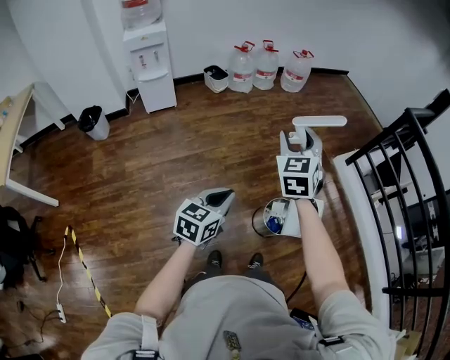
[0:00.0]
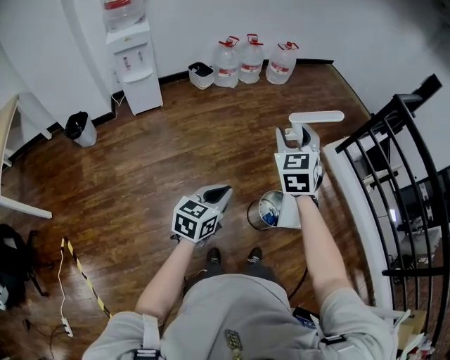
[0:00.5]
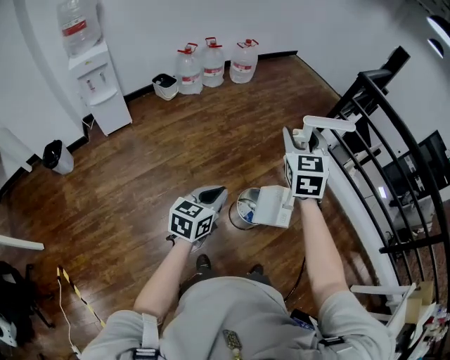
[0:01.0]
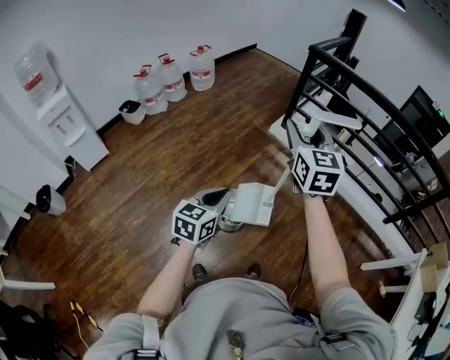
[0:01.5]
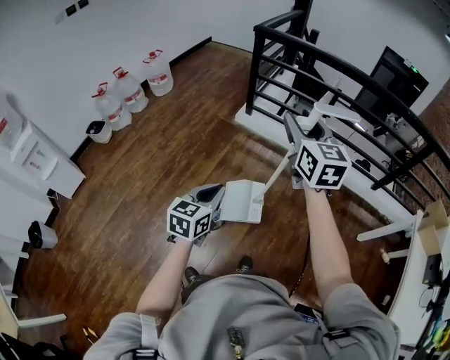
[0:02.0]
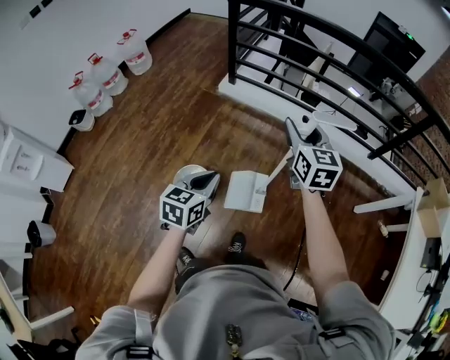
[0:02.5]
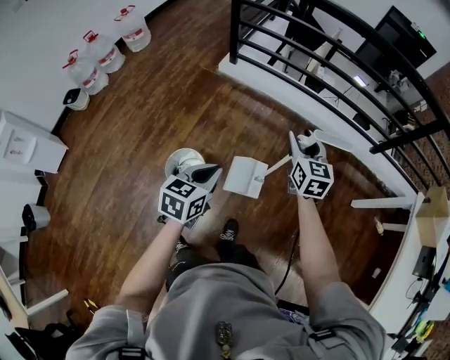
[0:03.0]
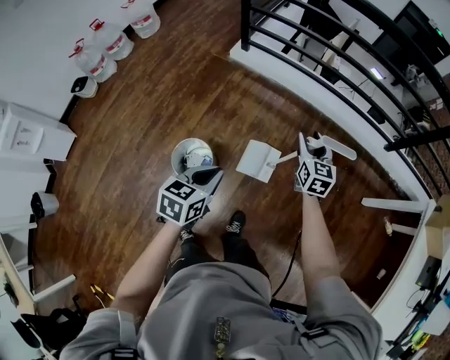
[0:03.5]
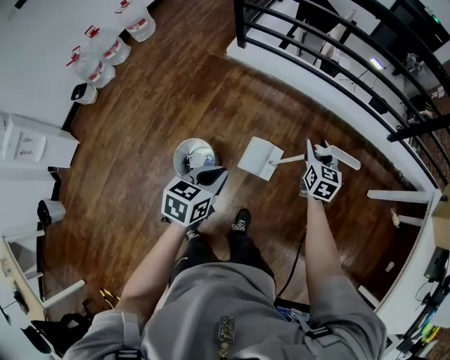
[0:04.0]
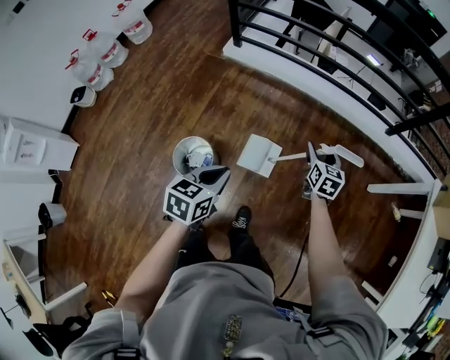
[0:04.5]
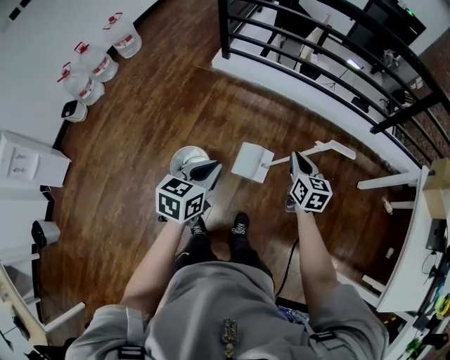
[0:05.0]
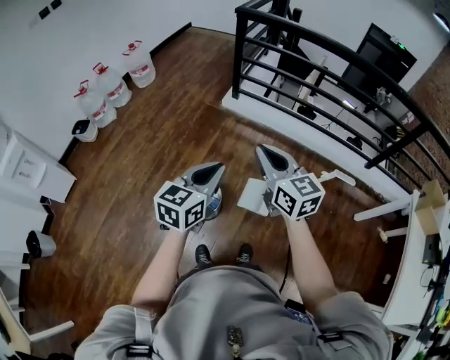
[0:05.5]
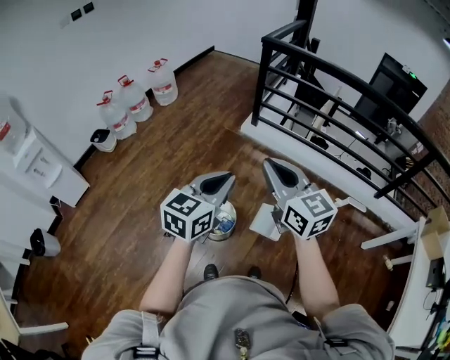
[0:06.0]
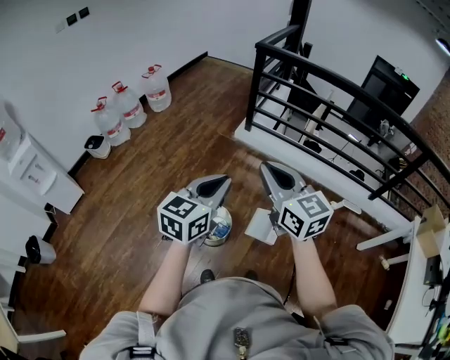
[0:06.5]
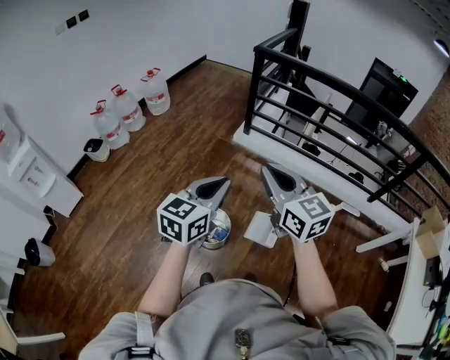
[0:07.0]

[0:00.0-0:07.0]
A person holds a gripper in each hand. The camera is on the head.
0:00.0 to 0:02.0: The two grippers travel together, approximately 50 cm. The left gripper rotates approximately 30 degrees, while the right gripper swivels some 40 degrees.
0:02.0 to 0:03.5: The left gripper heads downward, to the right and forward, covering about 15 cm; the right gripper goes about 40 cm downward and to the right, and changes its angle by some 20 degrees.
0:03.5 to 0:05.0: The left gripper shifts by approximately 5 cm, while the right gripper heads backward, covering about 15 cm, and closes.
0:05.0 to 0:07.0: The left gripper travels upward and to the left by some 25 cm, and turns by roughly 20 degrees. The right gripper shifts some 40 cm upward and to the left, and rotates about 40 degrees.

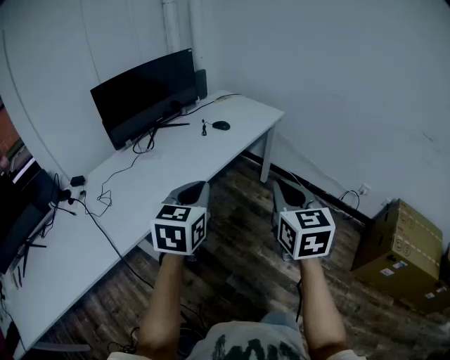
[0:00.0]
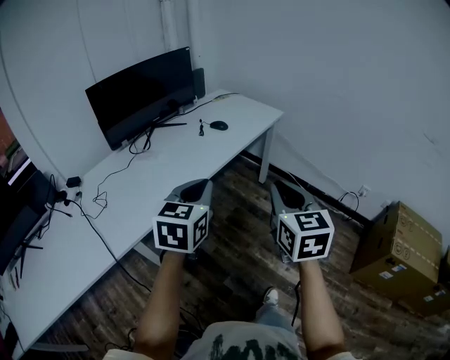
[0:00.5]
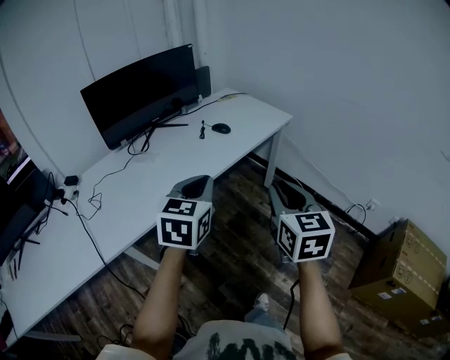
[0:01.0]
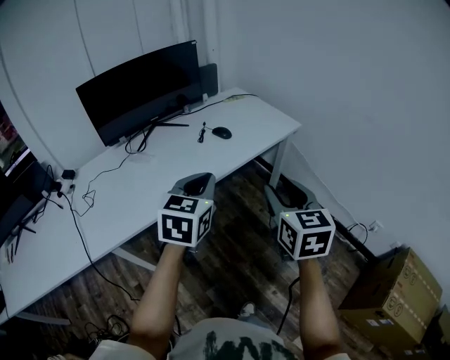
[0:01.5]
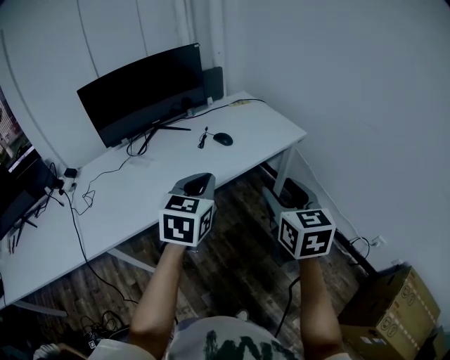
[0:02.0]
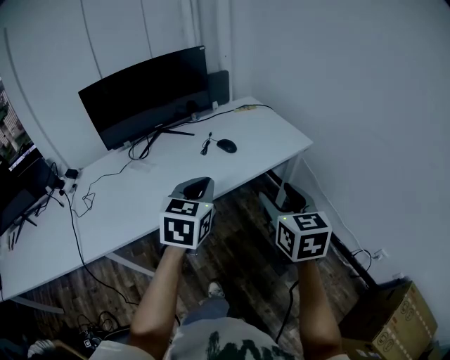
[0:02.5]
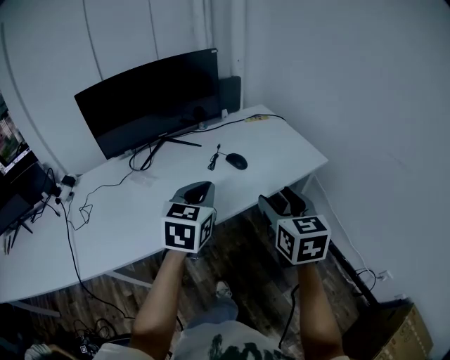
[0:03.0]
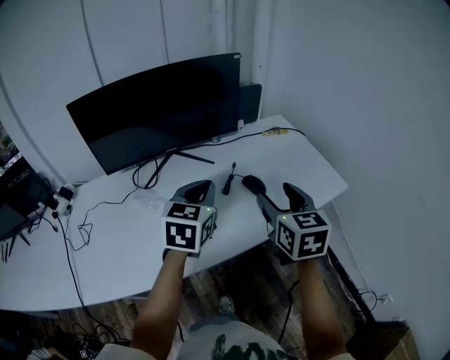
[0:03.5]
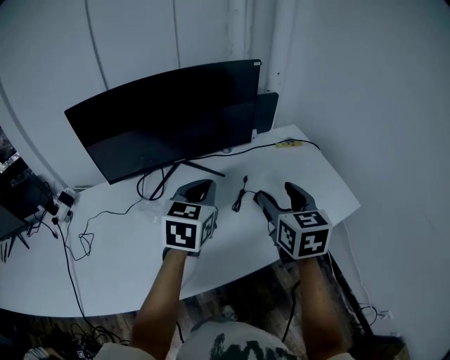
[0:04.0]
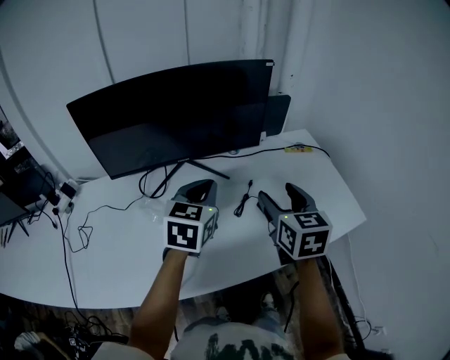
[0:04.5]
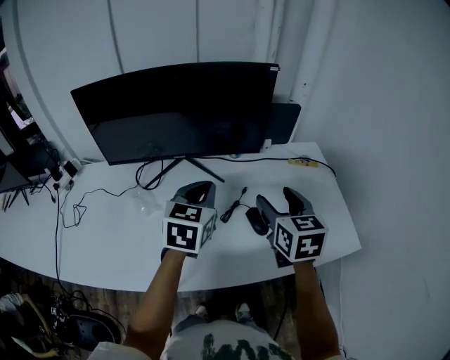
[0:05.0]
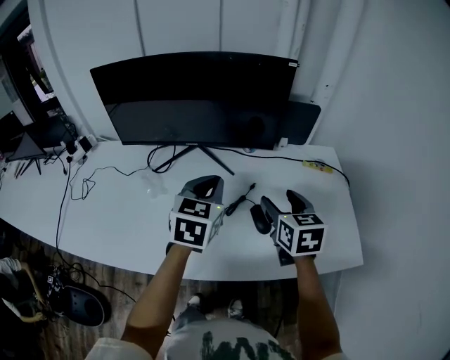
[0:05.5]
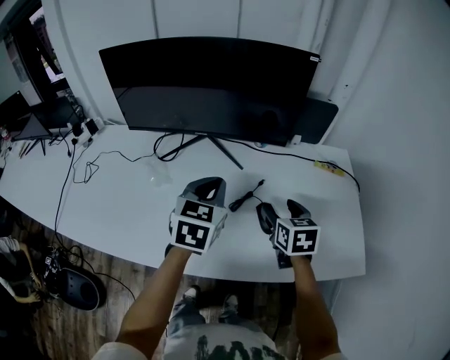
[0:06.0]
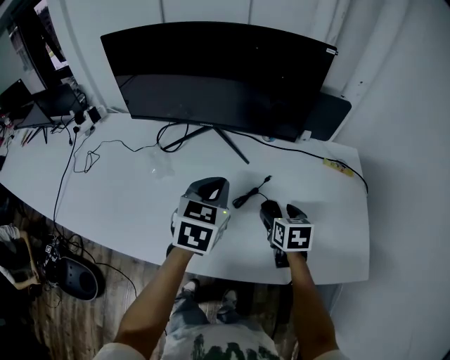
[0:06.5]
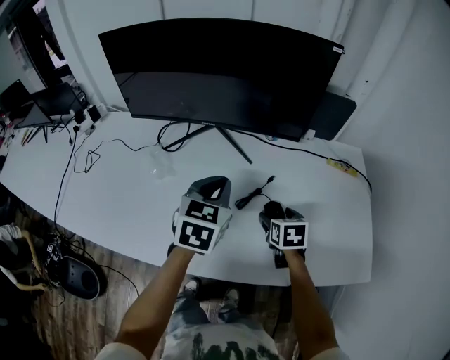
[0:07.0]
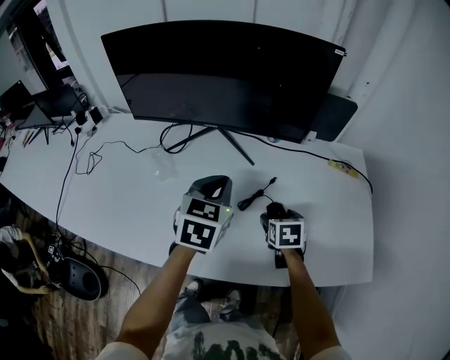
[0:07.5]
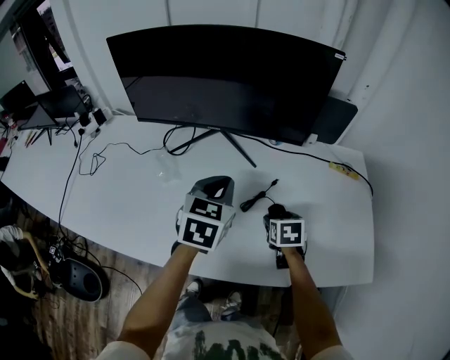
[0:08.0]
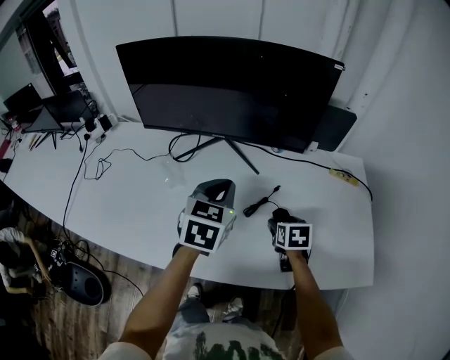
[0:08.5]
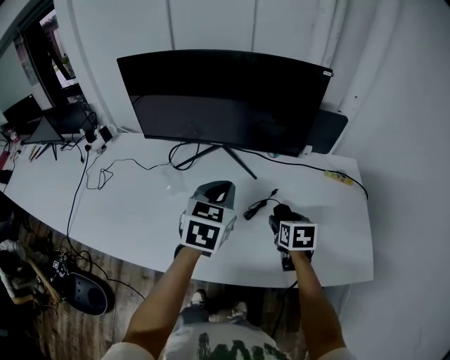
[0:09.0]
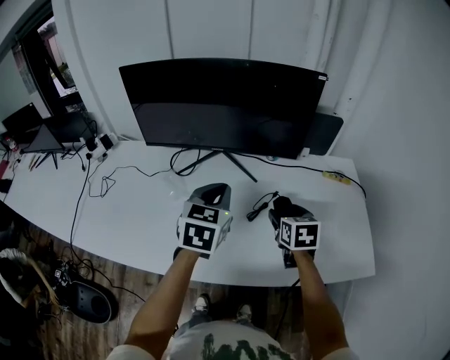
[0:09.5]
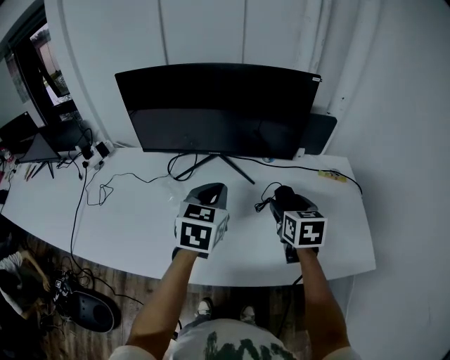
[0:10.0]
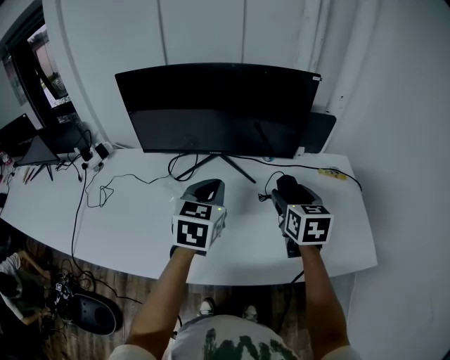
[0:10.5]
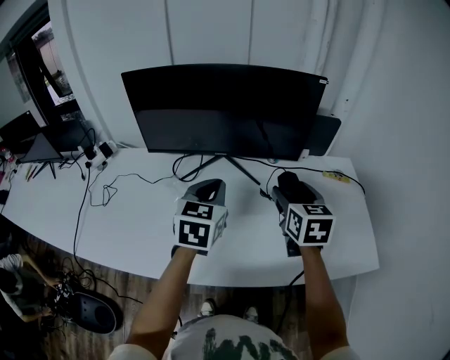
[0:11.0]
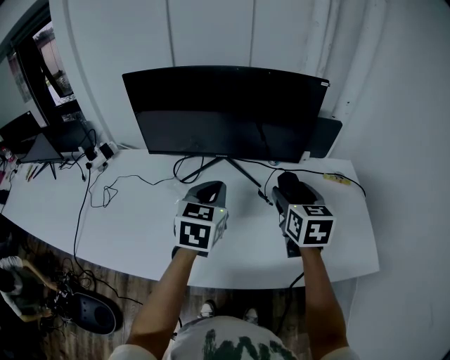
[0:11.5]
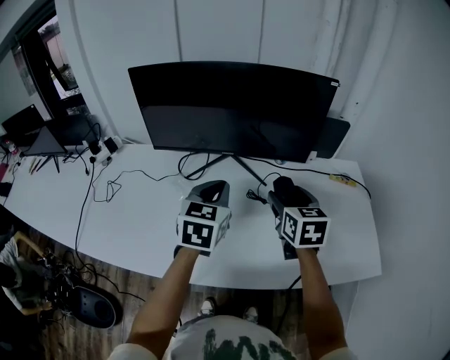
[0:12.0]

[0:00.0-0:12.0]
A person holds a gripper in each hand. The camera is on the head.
0:00.0 to 0:02.0: The grippers both shift forward and to the right by approximately 30 cm. The right gripper opens.
0:02.0 to 0:04.0: The left gripper goes some 40 cm forward and to the left, while the right gripper shifts roughly 40 cm forward.
0:04.0 to 0:06.0: The right gripper is displaced downward and forward by approximately 20 cm, and rotates some 30 degrees. Meanwhile the left gripper travels downward by approximately 5 cm, and changes its angle by about 20 degrees.
0:06.0 to 0:08.0: The right gripper travels downward by some 15 cm.
0:08.0 to 0:10.0: The left gripper moves upward, about 5 cm. The right gripper moves upward, some 20 cm, and swivels some 20 degrees.
0:10.0 to 0:12.0: The right gripper shifts approximately 5 cm to the left.

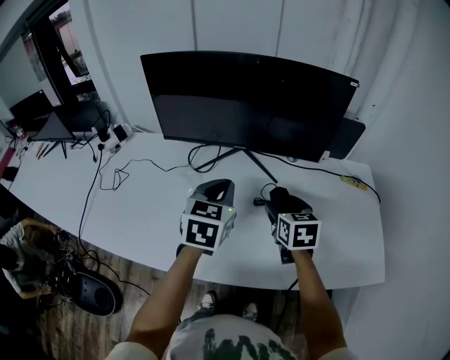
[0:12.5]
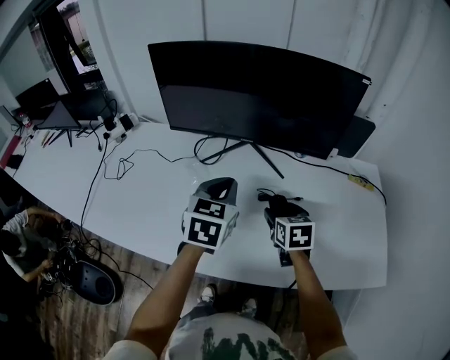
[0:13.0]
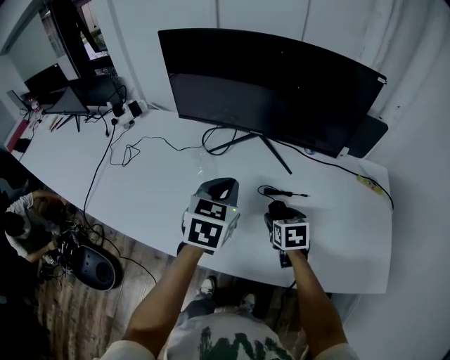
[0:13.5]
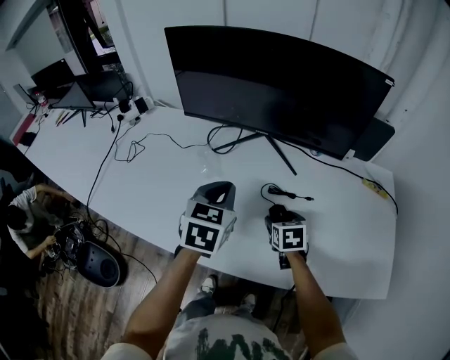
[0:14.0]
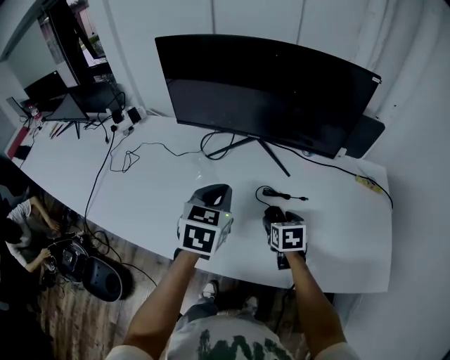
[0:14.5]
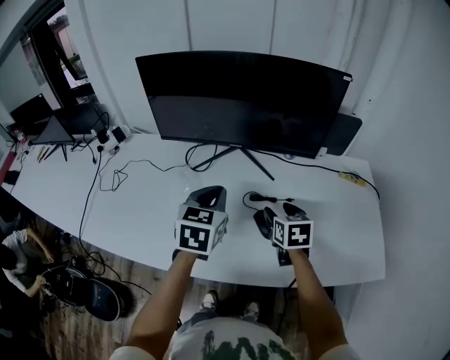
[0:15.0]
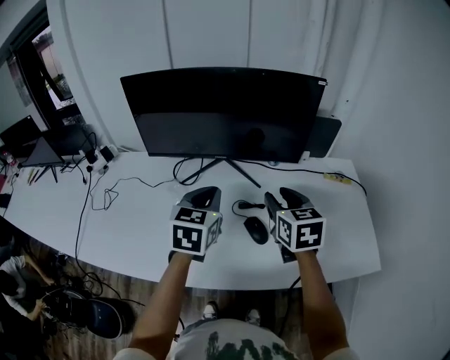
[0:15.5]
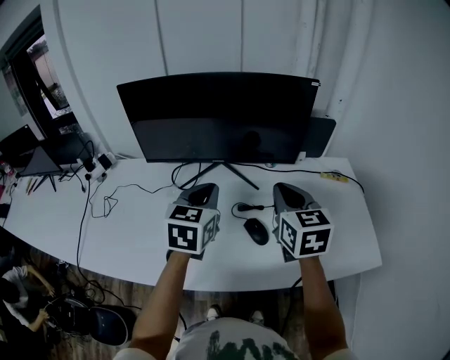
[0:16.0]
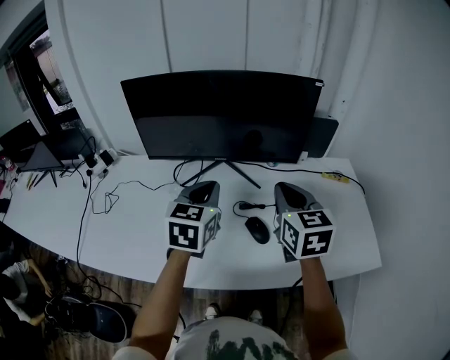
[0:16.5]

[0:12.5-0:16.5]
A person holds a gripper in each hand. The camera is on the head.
0:12.5 to 0:14.5: The right gripper goes approximately 15 cm downward, while the left gripper moves roughly 5 cm.
0:14.5 to 0:16.5: The left gripper heads upward, covering some 10 cm, while the right gripper travels upward by about 30 cm, tips its fingers upward by about 30 degrees, and closes its fingers.

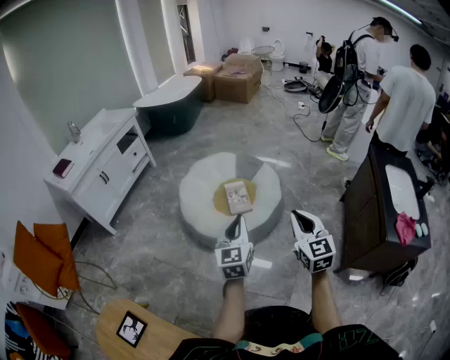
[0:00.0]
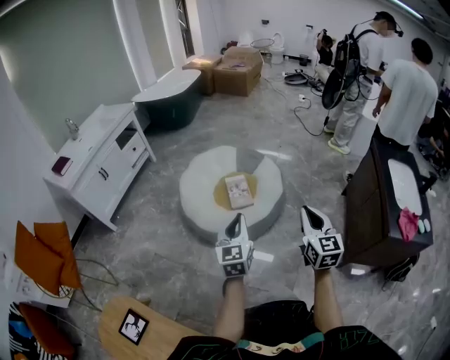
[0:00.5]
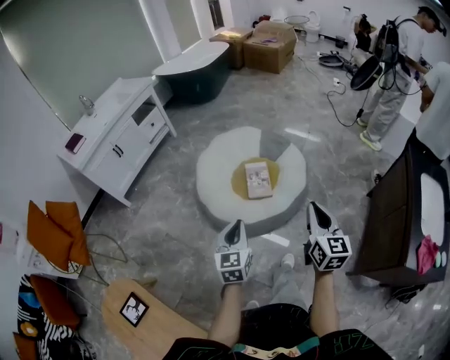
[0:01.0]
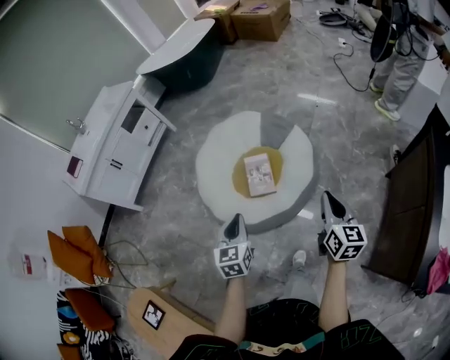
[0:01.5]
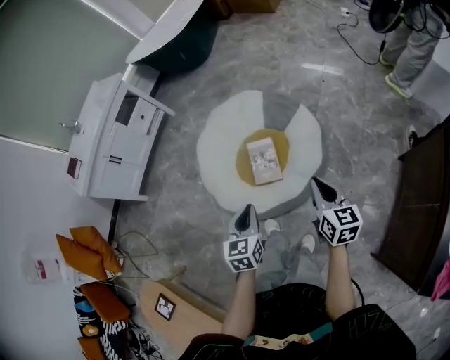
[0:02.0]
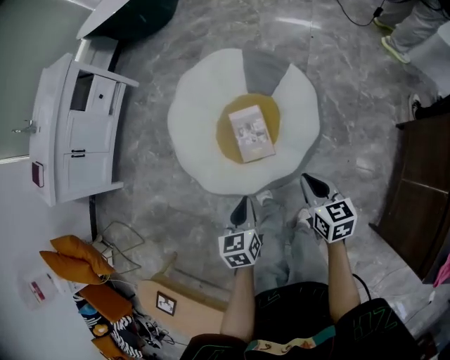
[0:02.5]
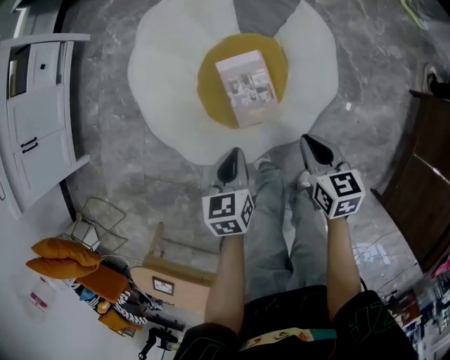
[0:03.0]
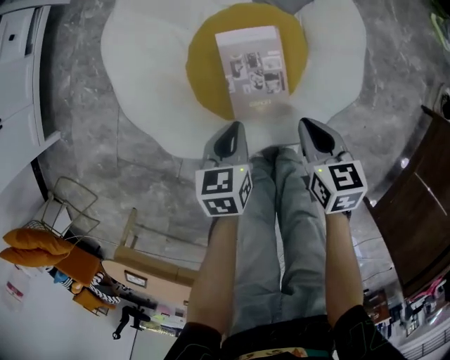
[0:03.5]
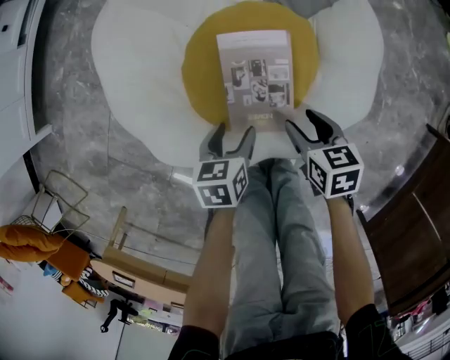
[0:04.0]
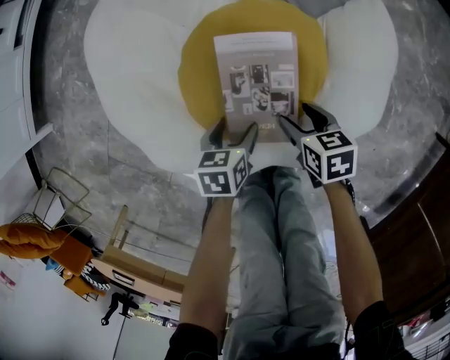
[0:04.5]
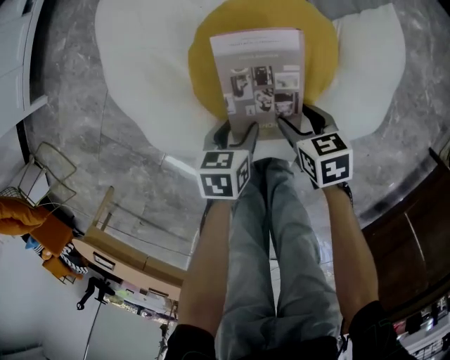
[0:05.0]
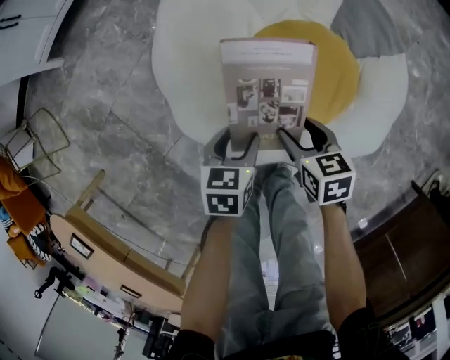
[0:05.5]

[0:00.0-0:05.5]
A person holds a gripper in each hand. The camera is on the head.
0:00.0 to 0:02.0: Both grippers move forward, approximately 35 cm. The right gripper turns by some 30 degrees, while the left gripper changes its angle by approximately 30 degrees.
0:02.0 to 0:03.5: The grippers both shift downward and forward by approximately 50 cm. The right gripper changes its angle by some 30 degrees. The left gripper turns by about 30 degrees.
0:03.5 to 0:05.5: The right gripper shifts by some 30 cm, changes its angle by approximately 30 degrees, and opens up. Meanwhile the left gripper moves approximately 35 cm, changes its angle by roughly 40 degrees, and opens up.
